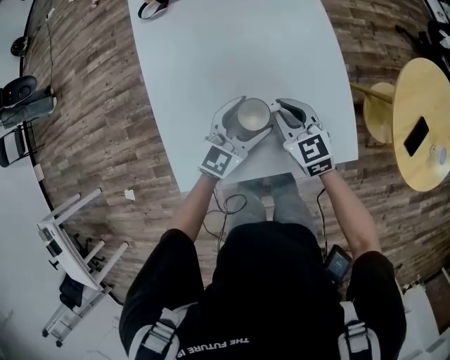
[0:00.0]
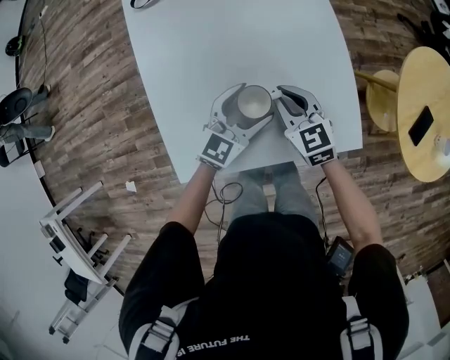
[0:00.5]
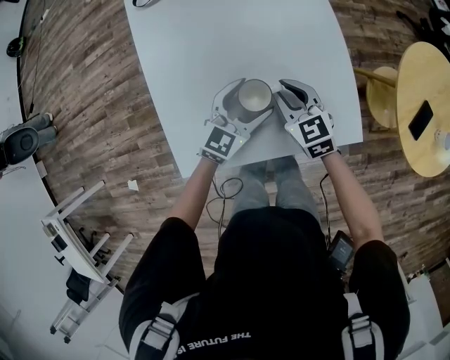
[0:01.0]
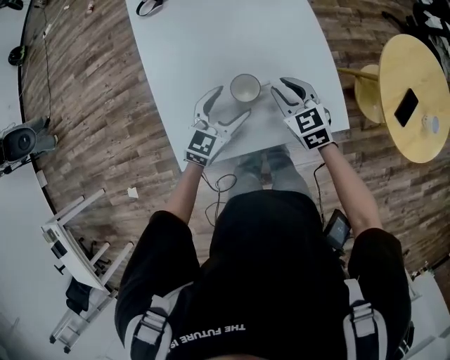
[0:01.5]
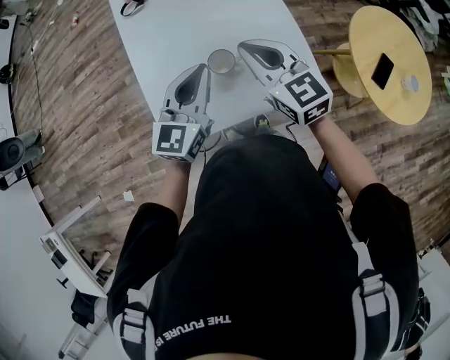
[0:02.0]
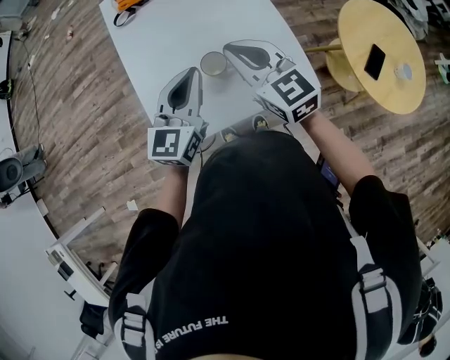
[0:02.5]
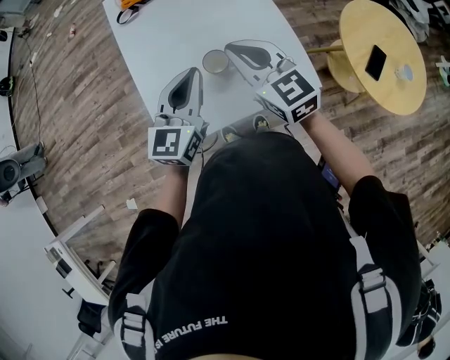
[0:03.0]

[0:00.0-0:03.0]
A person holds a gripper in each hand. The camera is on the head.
0:00.0 to 0:01.5: The left gripper changes place by approximately 5 cm.
0:01.5 to 0:03.0: Both grippers move upward, some 20 cm. The left gripper rotates some 20 degrees, and closes; the right gripper changes its angle by roughly 20 degrees, and closes its fingers.

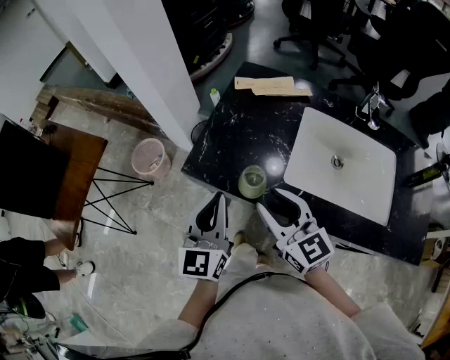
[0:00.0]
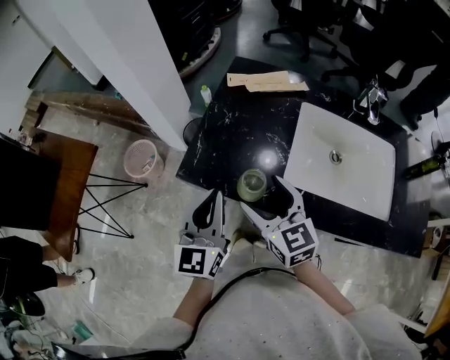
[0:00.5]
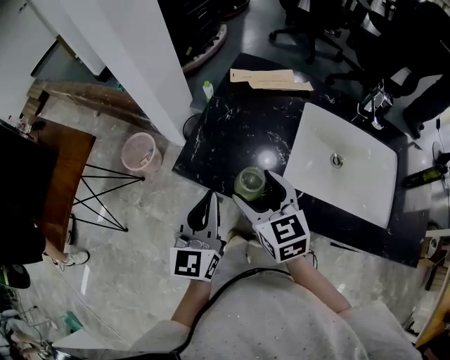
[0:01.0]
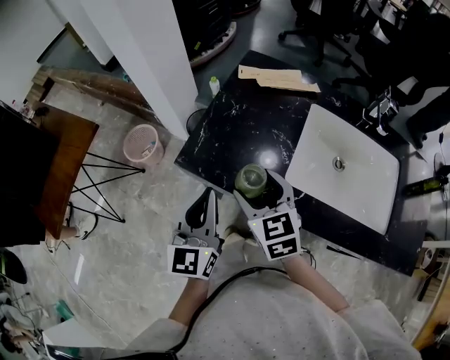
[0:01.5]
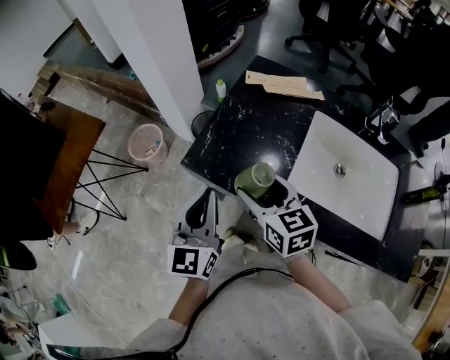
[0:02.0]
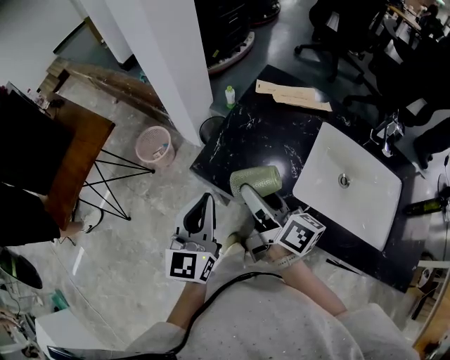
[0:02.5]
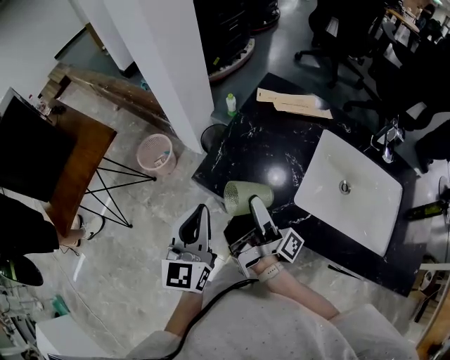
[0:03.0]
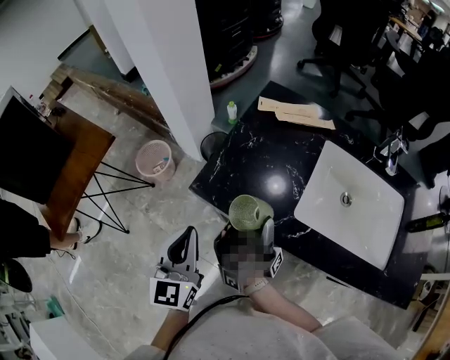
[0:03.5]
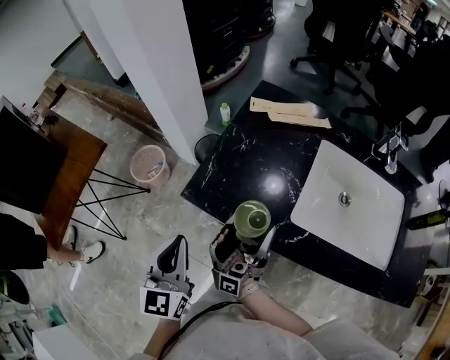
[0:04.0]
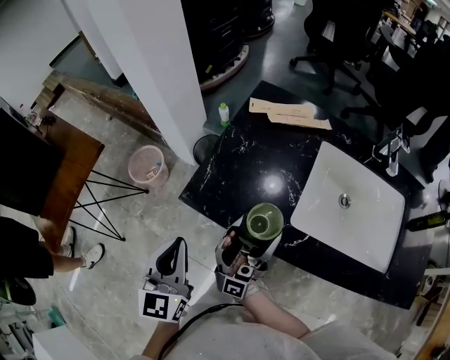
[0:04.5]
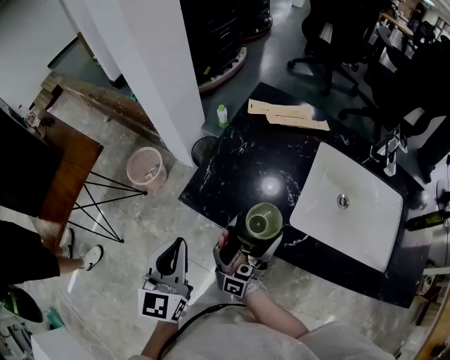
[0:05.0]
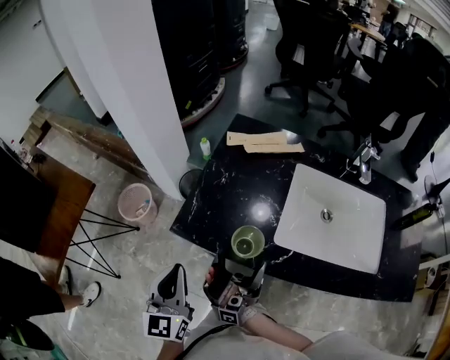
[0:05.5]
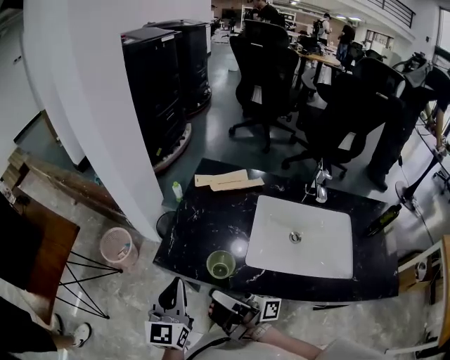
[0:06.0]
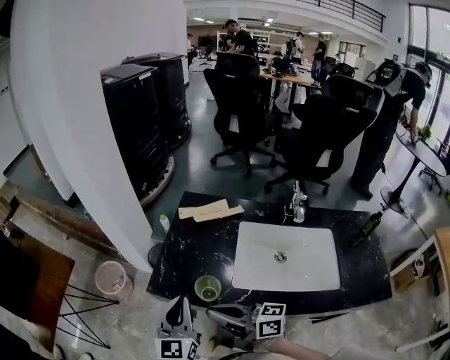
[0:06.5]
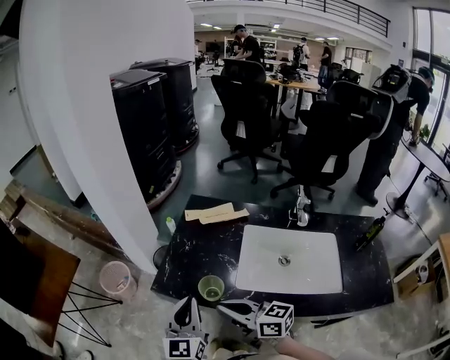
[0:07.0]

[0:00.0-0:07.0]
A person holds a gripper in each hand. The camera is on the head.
0:02.0 to 0:03.5: The left gripper changes place by some 5 cm.
0:05.0 to 0:07.0: The left gripper ends up about 15 cm from where it was.

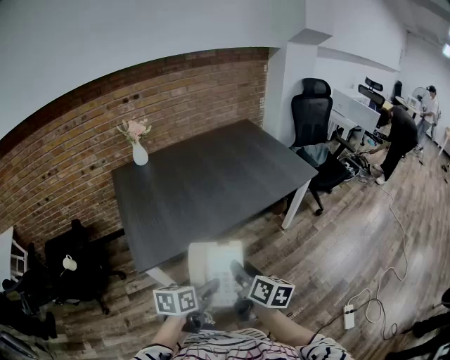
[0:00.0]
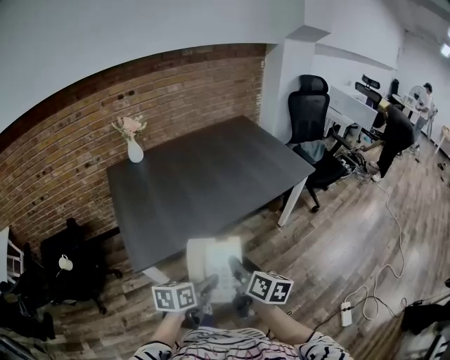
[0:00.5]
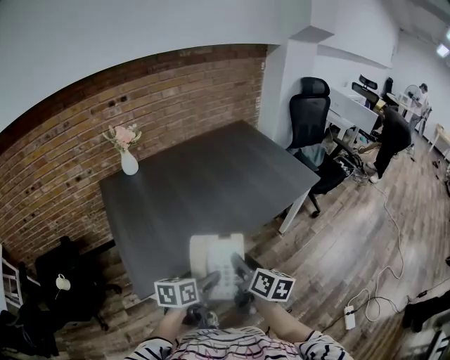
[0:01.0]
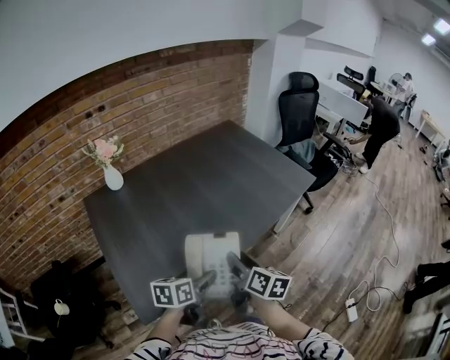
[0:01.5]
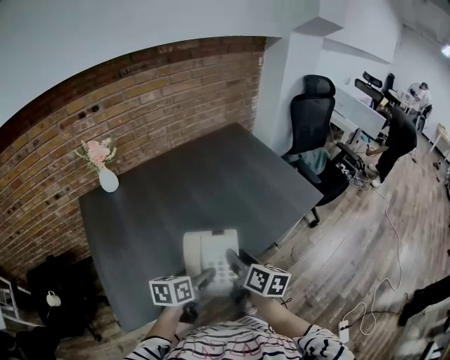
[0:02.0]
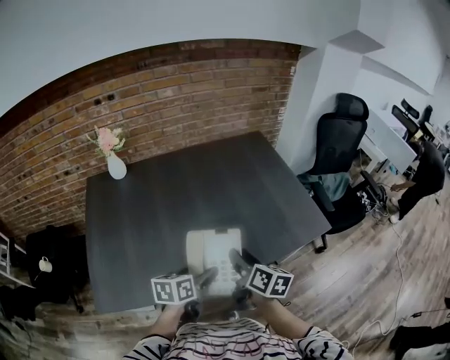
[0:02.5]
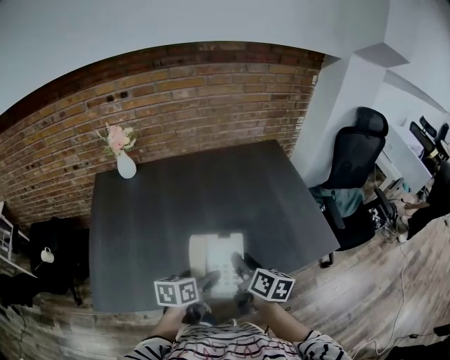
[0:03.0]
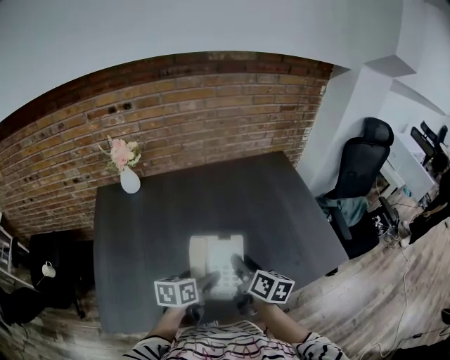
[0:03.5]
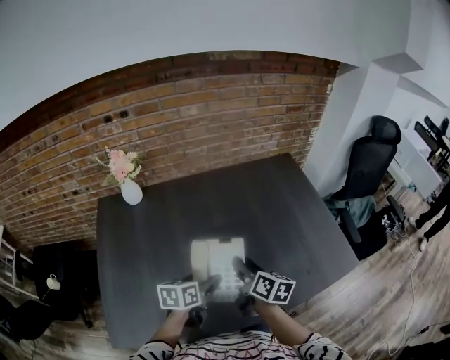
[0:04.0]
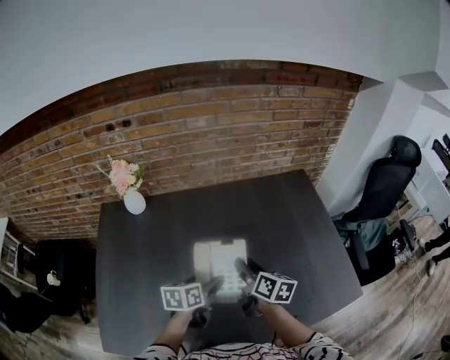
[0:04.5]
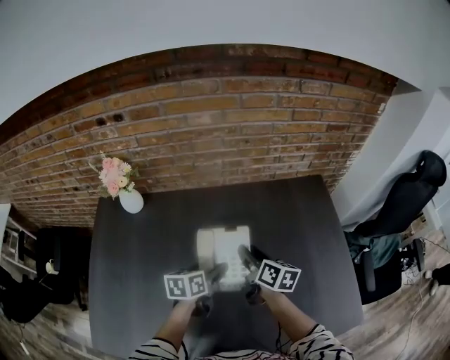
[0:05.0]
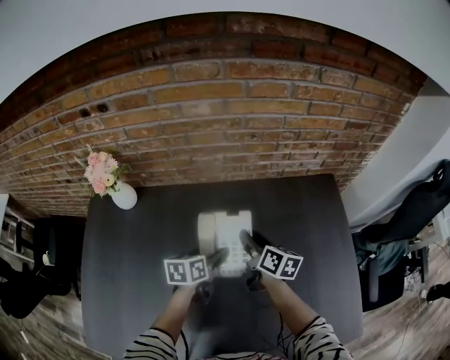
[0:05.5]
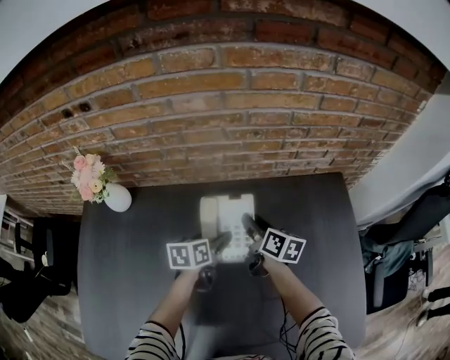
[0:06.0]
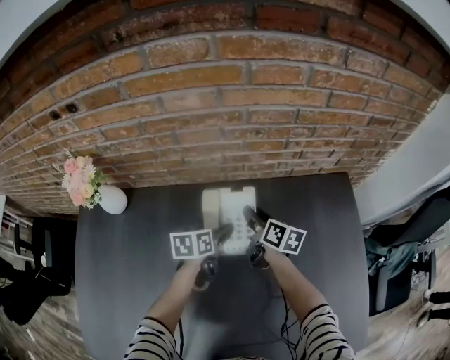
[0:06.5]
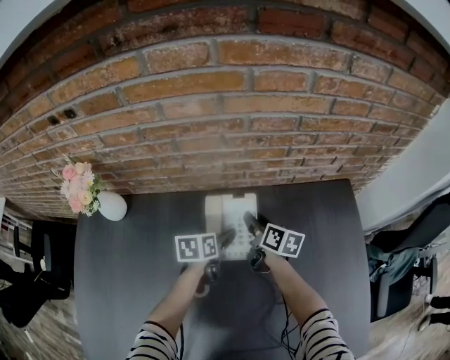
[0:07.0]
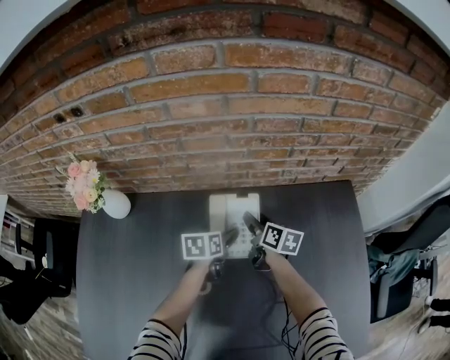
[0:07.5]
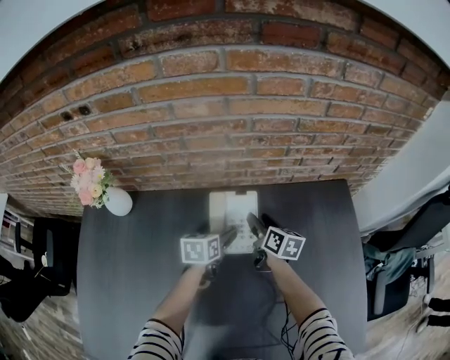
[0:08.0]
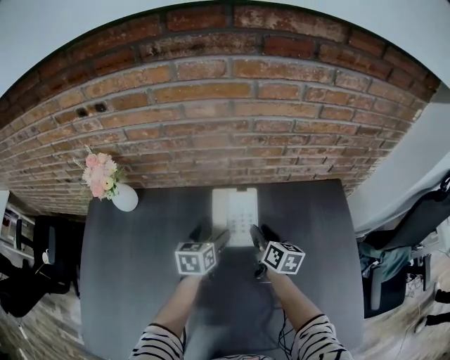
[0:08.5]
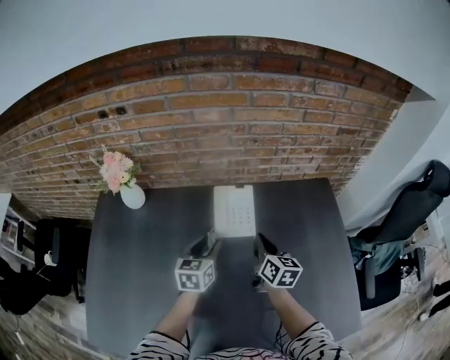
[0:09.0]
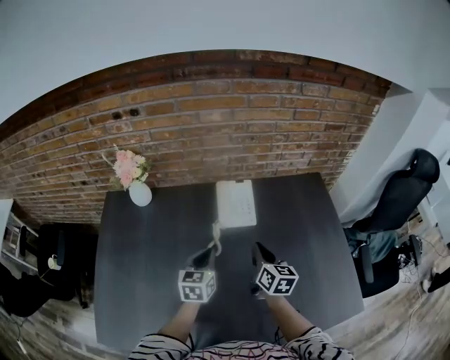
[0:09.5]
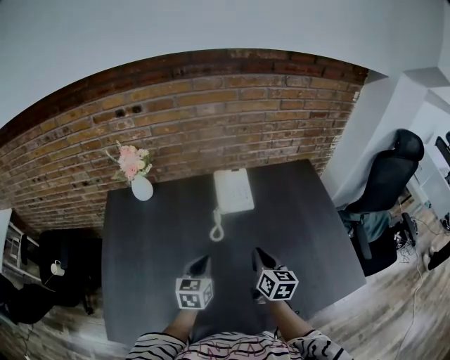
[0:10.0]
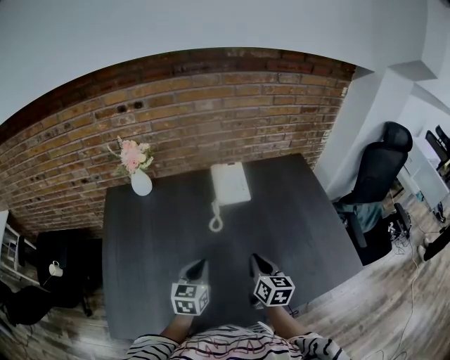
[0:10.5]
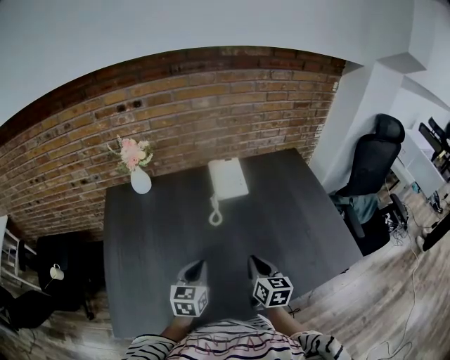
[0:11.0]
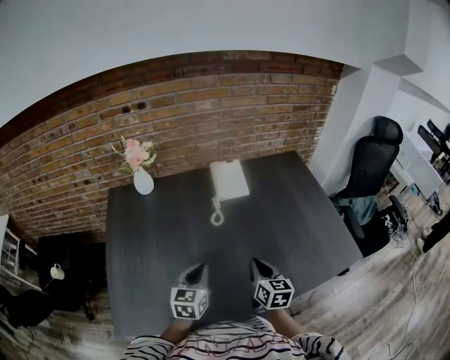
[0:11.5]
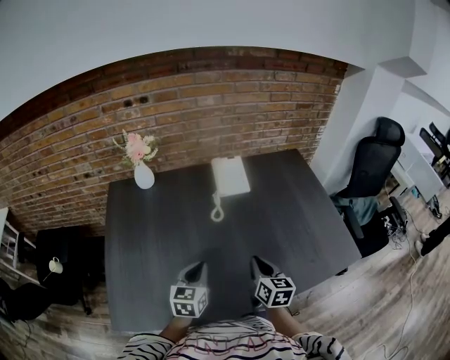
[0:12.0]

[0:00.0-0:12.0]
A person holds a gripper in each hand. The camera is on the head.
0:00.0 to 0:02.0: The two grippers go about 35 cm forward.
0:02.0 to 0:04.0: The grippers both shift forward by approximately 25 cm.
0:04.0 to 0:06.0: The pair of grippers is taken forward, about 40 cm.
0:06.0 to 0:08.0: The left gripper is displaced forward by approximately 5 cm; the right gripper ends up roughly 5 cm from where it was.
0:08.0 to 0:10.0: Both grippers travel together backward, roughly 40 cm. The right gripper closes; the left gripper swivels about 20 degrees, and closes up.
0:10.0 to 0:12.0: Both grippers travel together backward, some 15 cm.

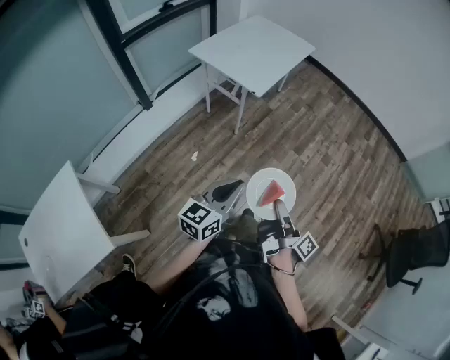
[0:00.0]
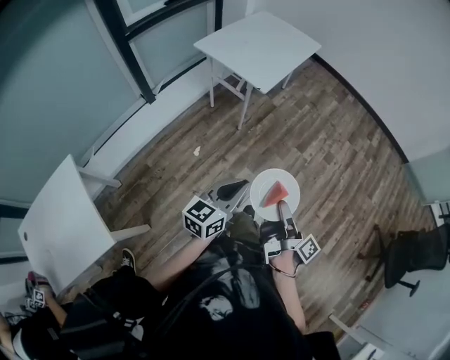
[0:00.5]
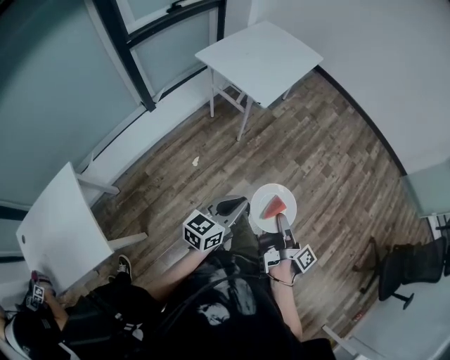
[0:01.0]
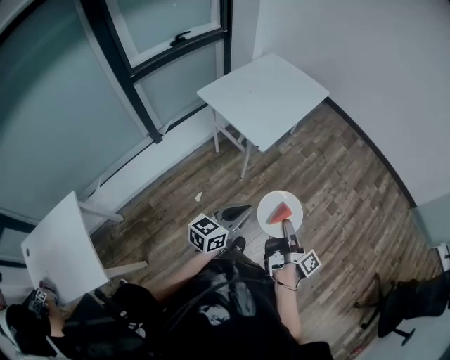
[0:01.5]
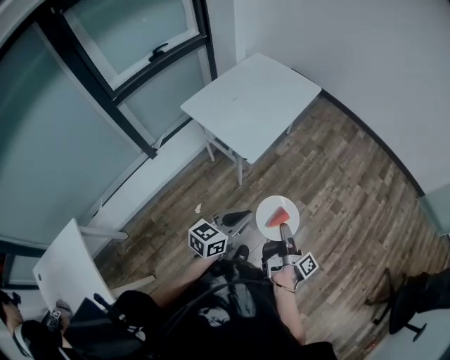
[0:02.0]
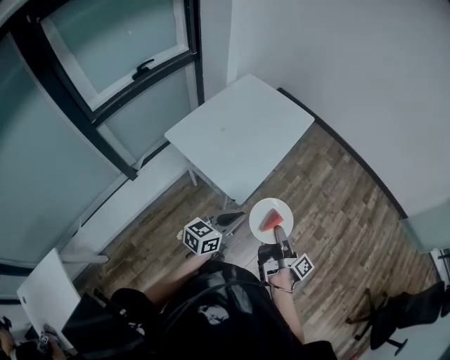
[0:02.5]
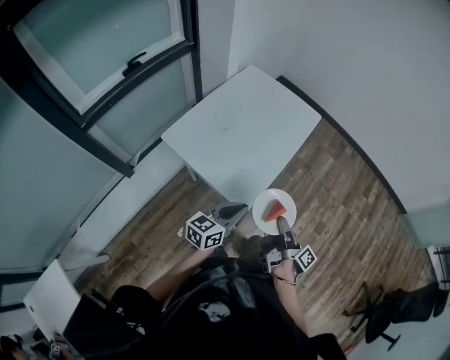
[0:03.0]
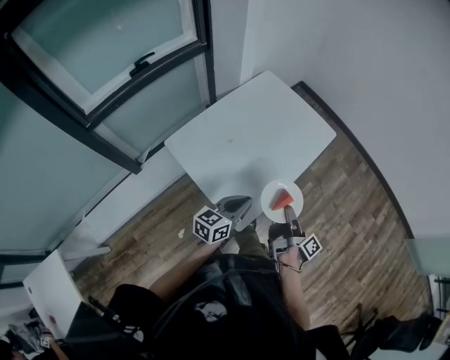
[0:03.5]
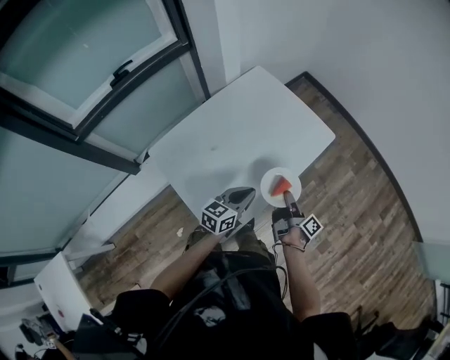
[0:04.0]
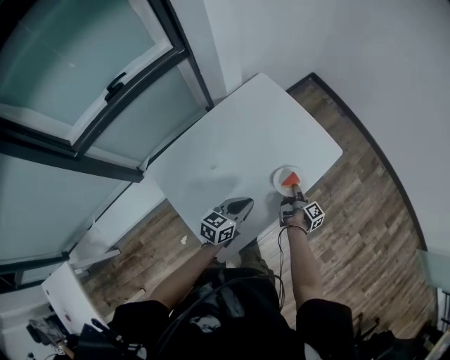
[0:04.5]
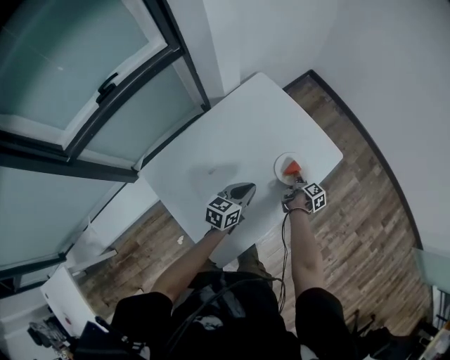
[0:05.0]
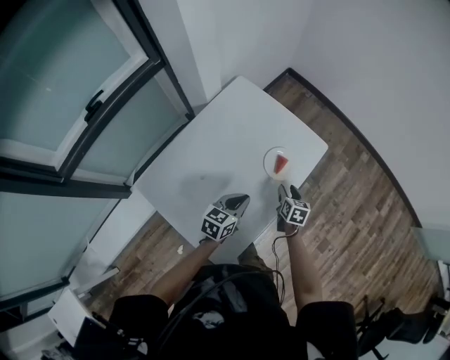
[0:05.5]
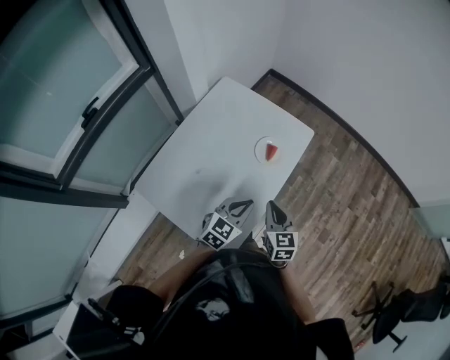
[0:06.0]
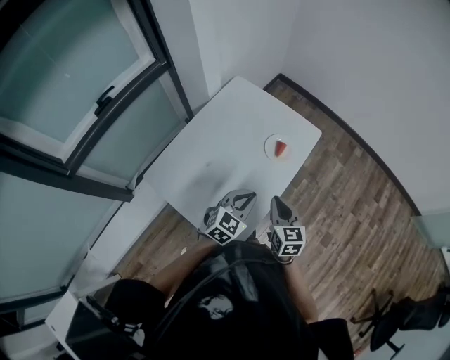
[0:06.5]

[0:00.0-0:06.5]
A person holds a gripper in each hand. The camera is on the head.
0:00.0 to 0:02.0: The left gripper changes place by approximately 30 cm.
0:02.0 to 0:04.5: The left gripper ends up some 60 cm from where it was.
0:04.5 to 0:06.5: The left gripper moves upward, approximately 5 cm, and changes its angle by roughly 40 degrees.
